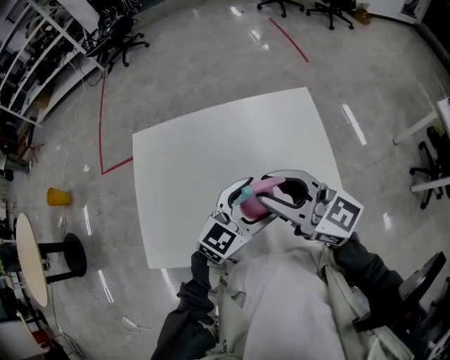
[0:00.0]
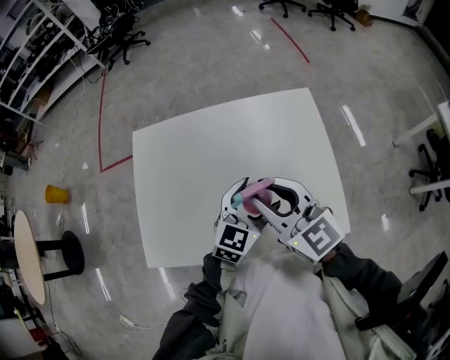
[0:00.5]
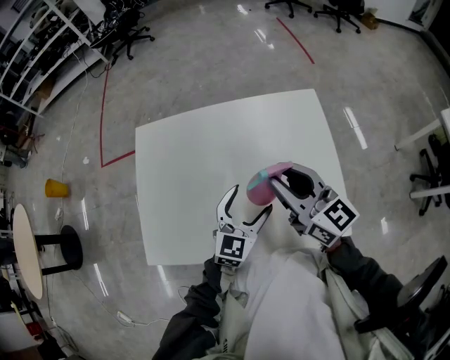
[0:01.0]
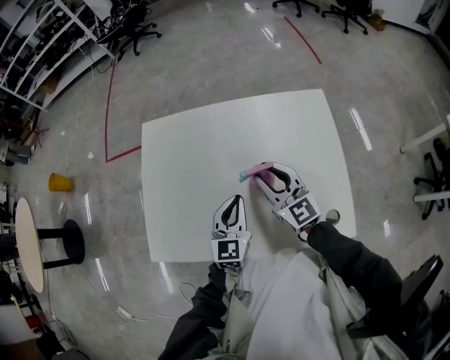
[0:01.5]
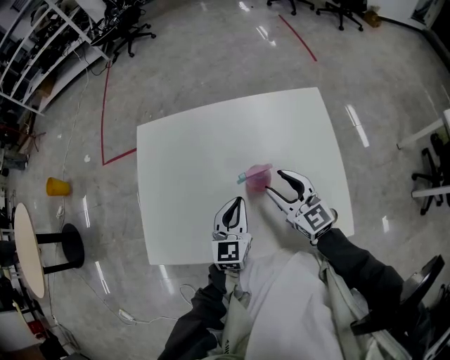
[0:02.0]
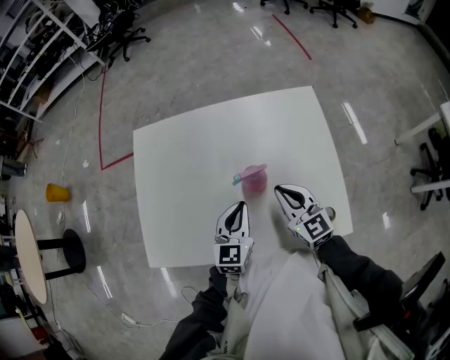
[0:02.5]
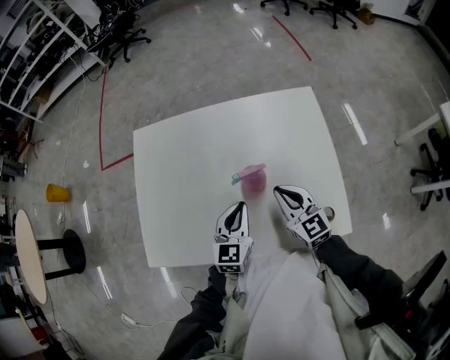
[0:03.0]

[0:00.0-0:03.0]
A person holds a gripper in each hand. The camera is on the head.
0:00.0 to 0:01.5: The left gripper shifts approximately 15 cm to the left and downward, turns by about 40 degrees, and closes up. Meanwhile the right gripper is displaced downward and forward by approximately 15 cm, and turns by about 20 degrees.
0:01.5 to 0:03.0: The right gripper heads backward, to the right and downward, covering about 10 cm.

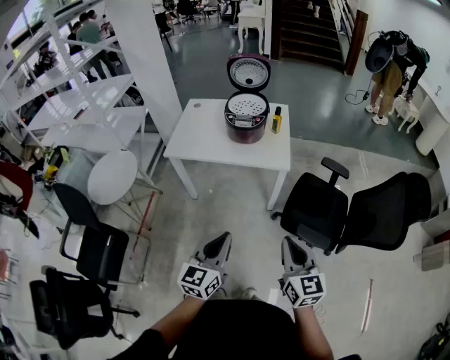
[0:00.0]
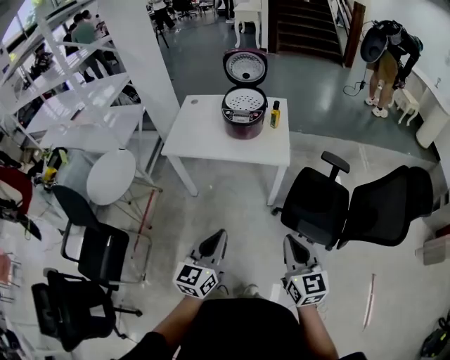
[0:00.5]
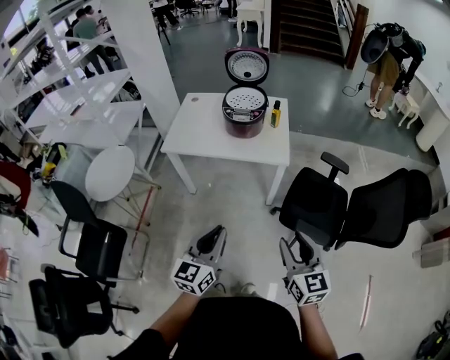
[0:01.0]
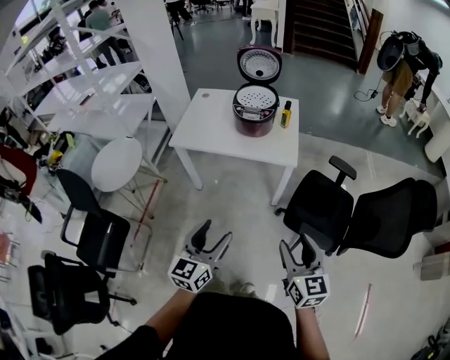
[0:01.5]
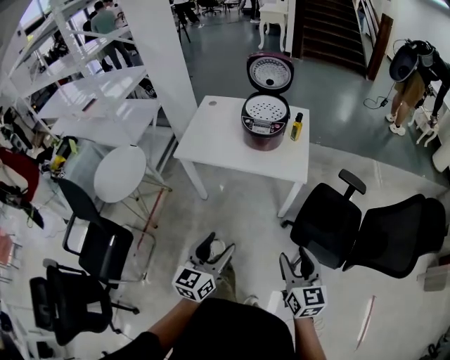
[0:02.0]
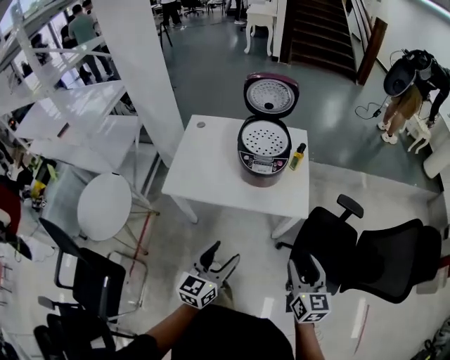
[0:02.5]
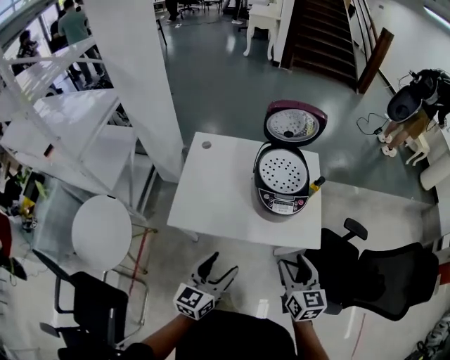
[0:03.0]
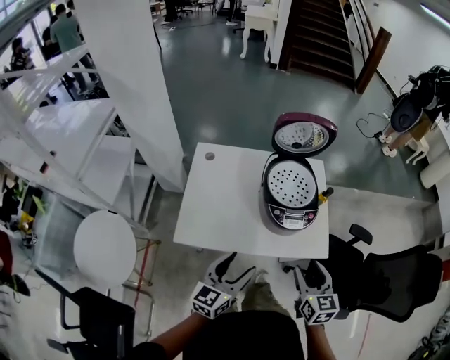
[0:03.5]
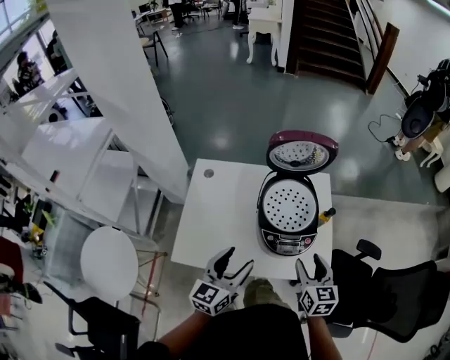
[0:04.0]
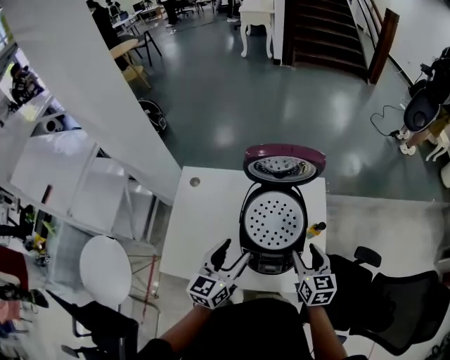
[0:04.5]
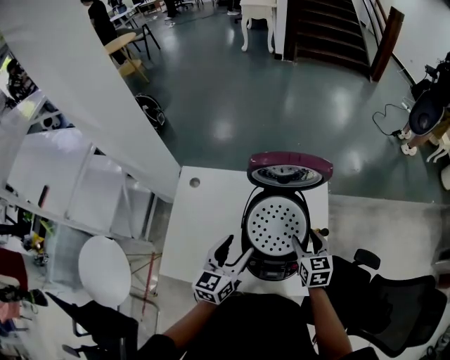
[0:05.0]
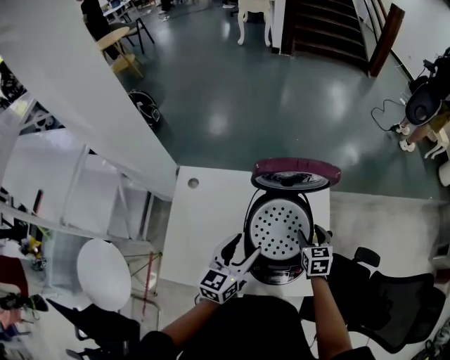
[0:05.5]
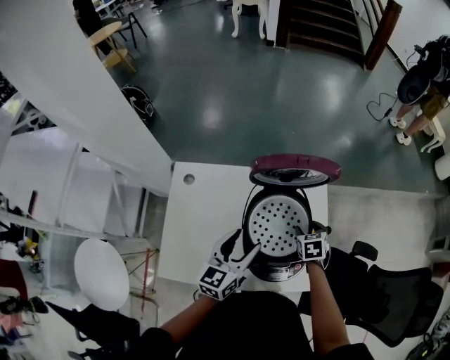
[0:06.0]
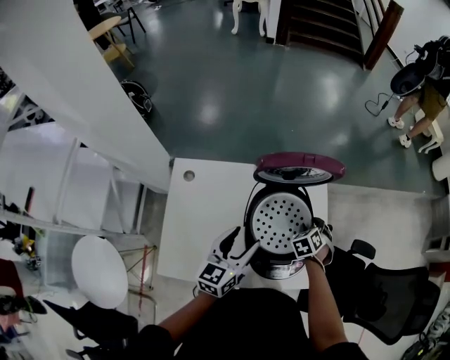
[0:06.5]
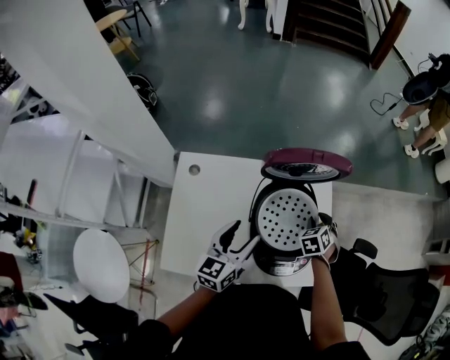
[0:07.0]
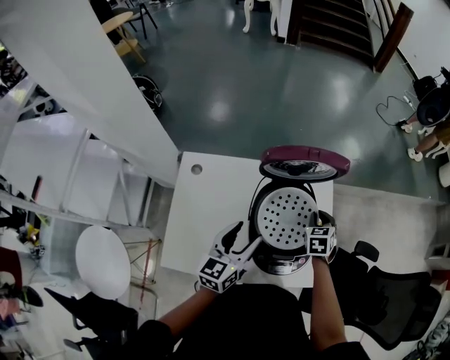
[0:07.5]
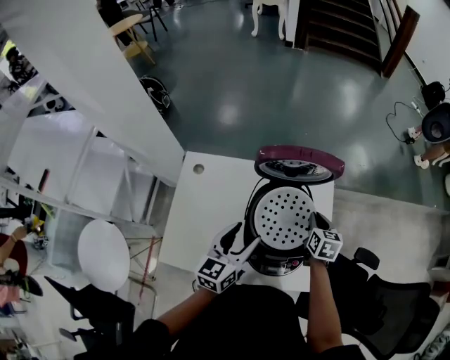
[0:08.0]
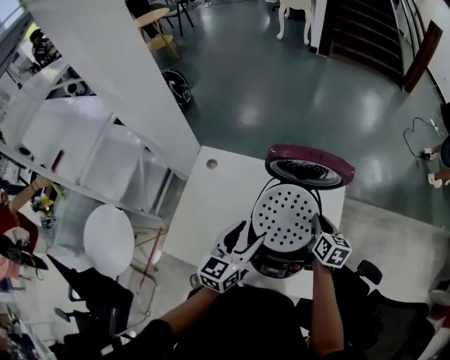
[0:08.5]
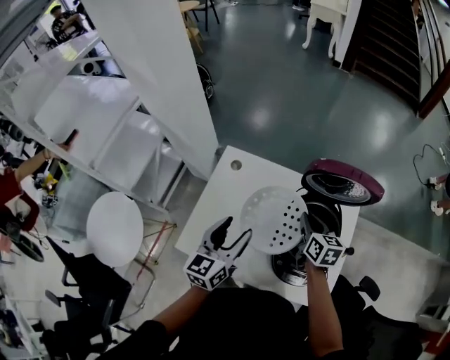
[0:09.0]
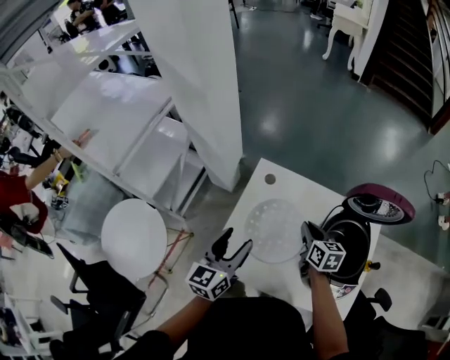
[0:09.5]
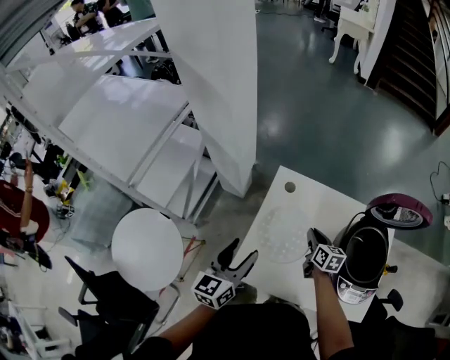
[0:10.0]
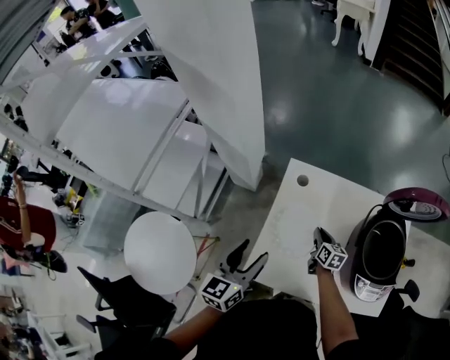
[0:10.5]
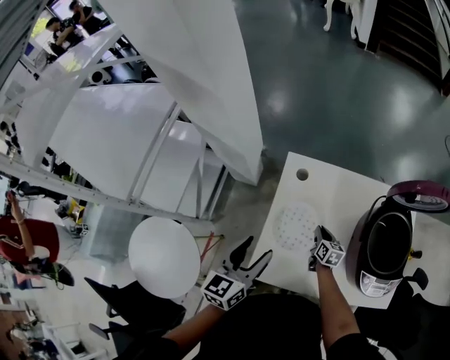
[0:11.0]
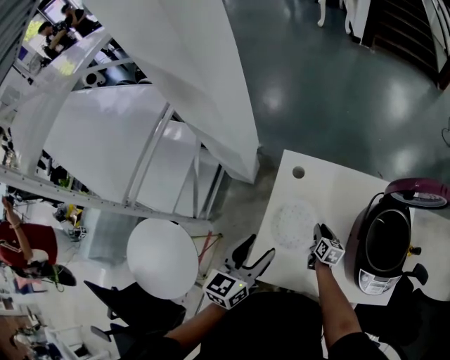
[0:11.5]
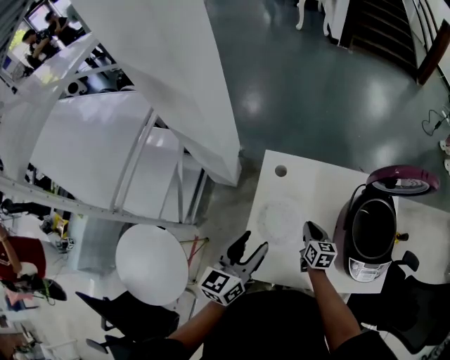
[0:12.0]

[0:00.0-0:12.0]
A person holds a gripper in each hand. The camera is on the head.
0:00.0 to 0:02.0: The right gripper moves forward and downward, some 10 cm, and opens its fingers. Meanwhile the left gripper is displaced forward by approximately 5 cm, and opens up.
0:02.0 to 0:04.0: The pair of grippers is taken forward, about 50 cm.
0:04.0 to 0:06.0: The left gripper heads forward, covering approximately 20 cm. Meanwhile the right gripper is displaced forward and downward by some 25 cm, and tilts its fingers roughly 30 degrees downward.
0:06.0 to 0:08.0: The right gripper moves upward, about 5 cm, changes its angle by approximately 30 degrees, and closes up.
0:08.0 to 0:10.0: The right gripper ends up roughly 40 cm from where it was, and swivels approximately 20 degrees. Meanwhile the left gripper moves roughly 40 cm.
0:10.0 to 0:12.0: The right gripper goes downward and returns, roughly 15 cm each way; the left gripper ends up some 5 cm from where it was.

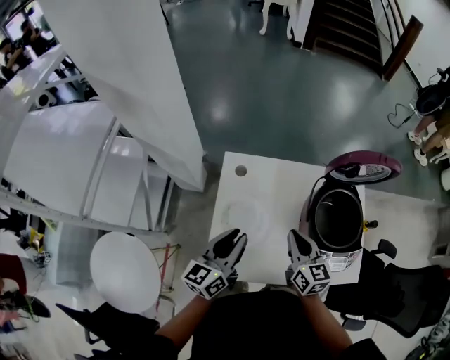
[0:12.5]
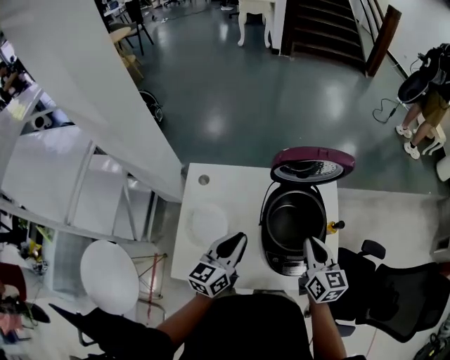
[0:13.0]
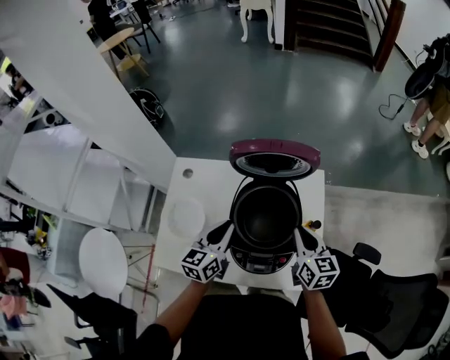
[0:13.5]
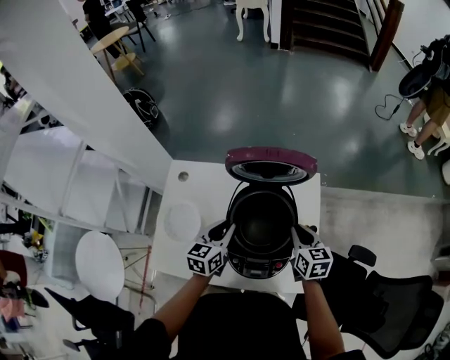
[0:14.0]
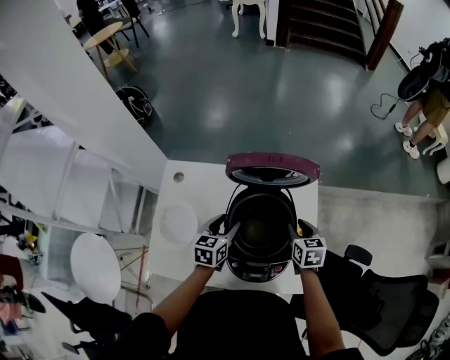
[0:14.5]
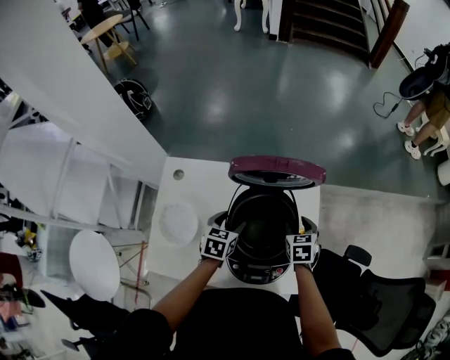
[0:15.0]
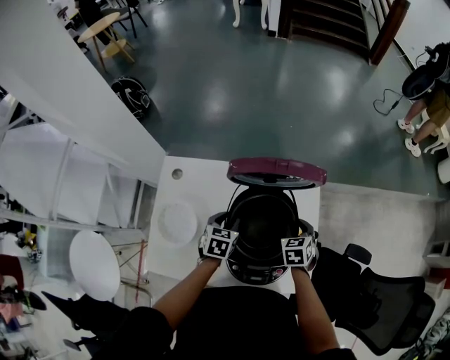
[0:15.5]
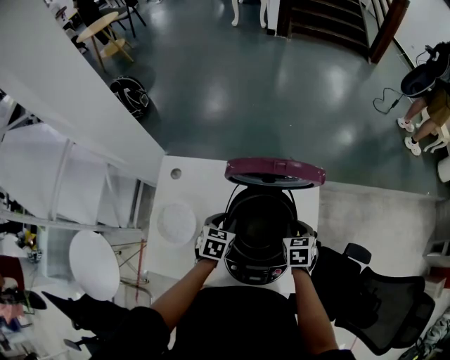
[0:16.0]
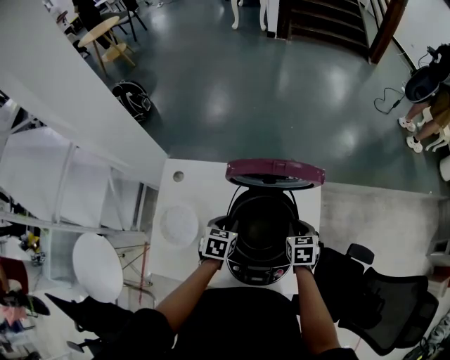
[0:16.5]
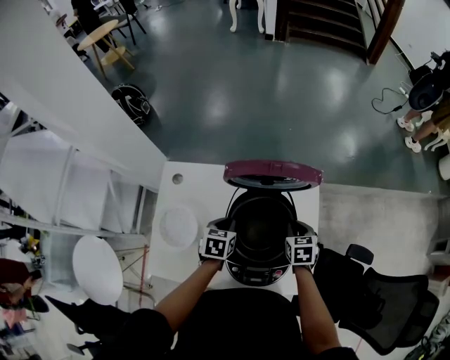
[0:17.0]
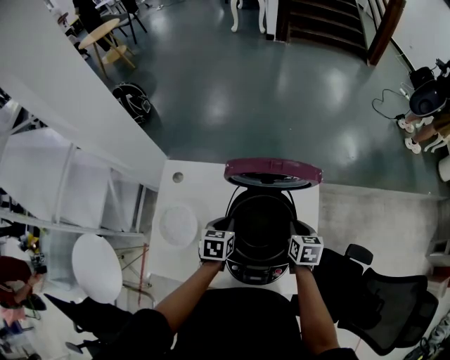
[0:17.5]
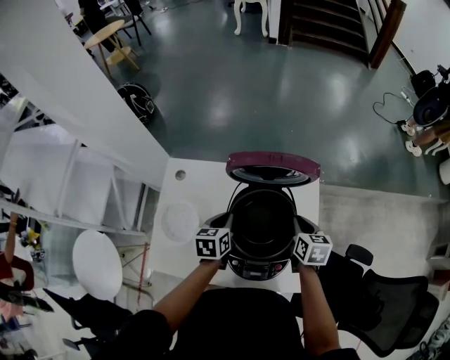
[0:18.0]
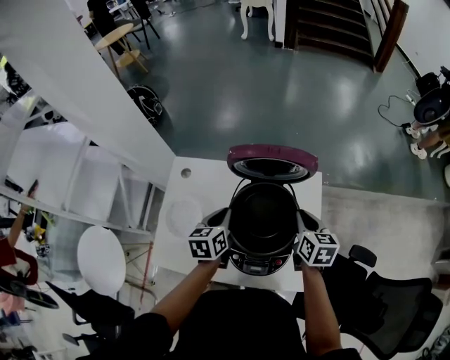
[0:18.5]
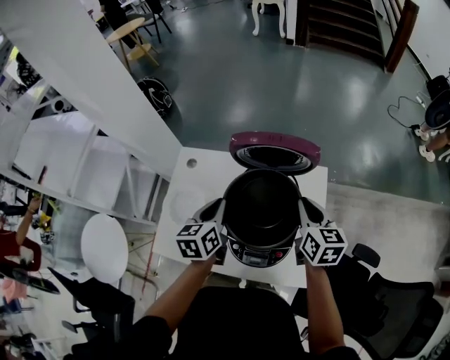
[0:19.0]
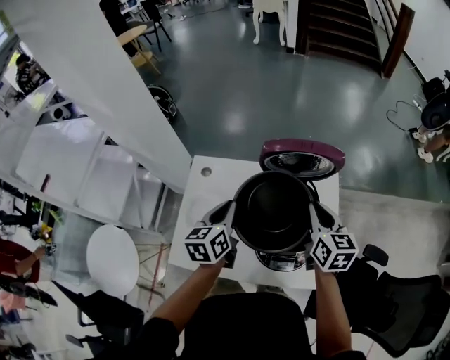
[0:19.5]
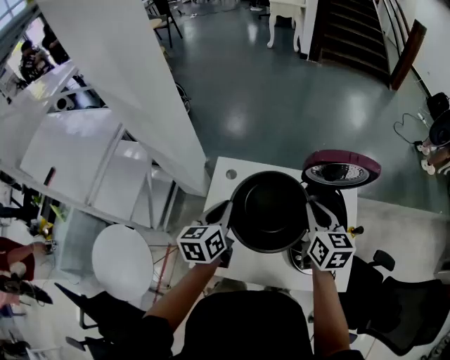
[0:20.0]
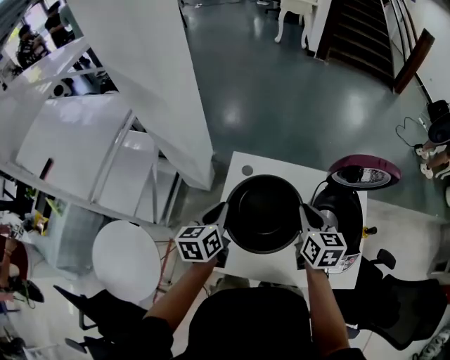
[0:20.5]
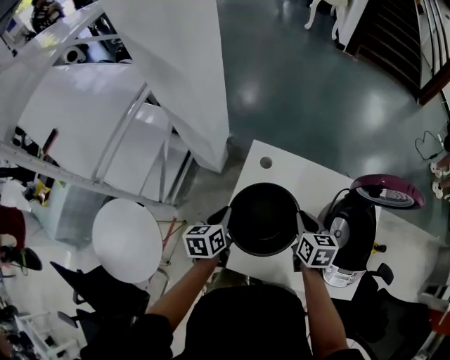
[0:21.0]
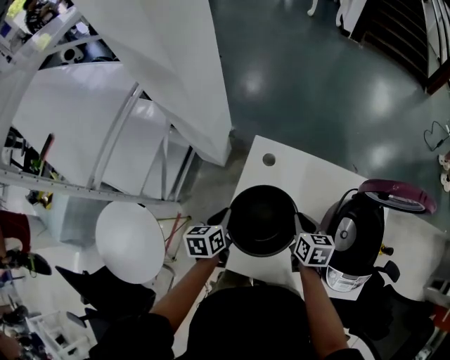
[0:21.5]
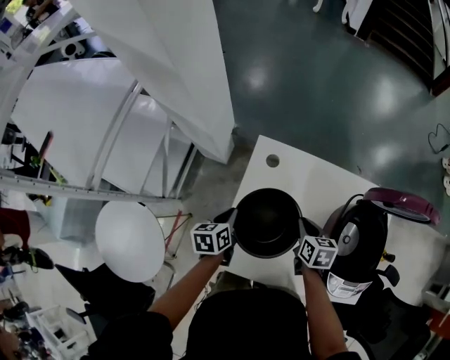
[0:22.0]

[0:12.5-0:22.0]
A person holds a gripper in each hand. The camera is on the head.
0:12.5 to 0:14.5: The left gripper travels to the right and forward by roughly 30 cm, changes its angle by about 30 degrees, and opens up. The right gripper shifts some 35 cm to the right, turns by some 20 degrees, and opens.
0:14.5 to 0:16.5: The left gripper closes up.
0:16.5 to 0:18.0: The grippers both shift upward by approximately 5 cm.
0:18.0 to 0:20.0: Both grippers travel together to the left and upward, approximately 25 cm. The left gripper changes its angle by approximately 20 degrees.
0:20.0 to 0:22.0: The grippers both shift downward and to the left by approximately 30 cm. The right gripper rotates roughly 30 degrees. The left gripper changes its angle by some 20 degrees.

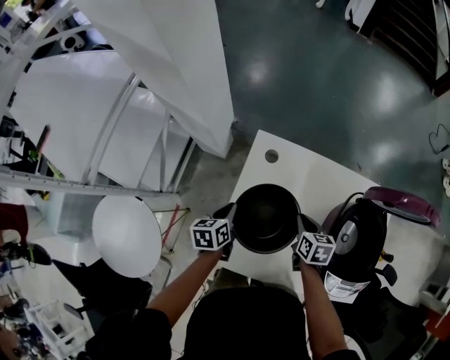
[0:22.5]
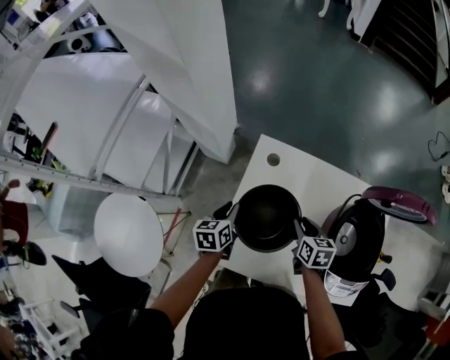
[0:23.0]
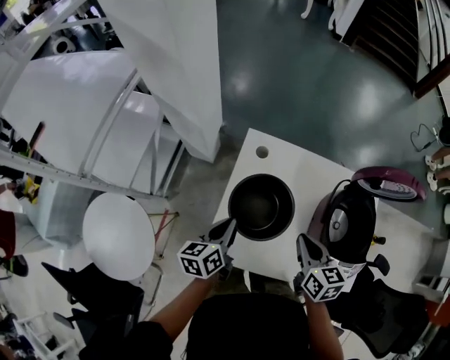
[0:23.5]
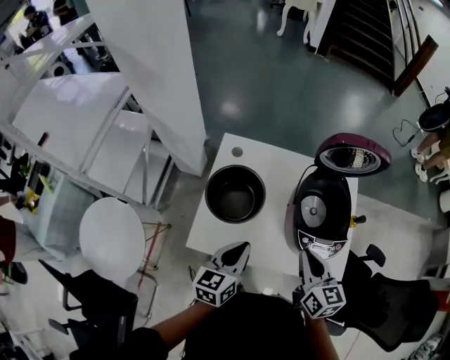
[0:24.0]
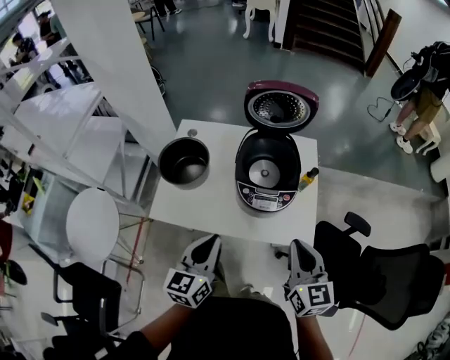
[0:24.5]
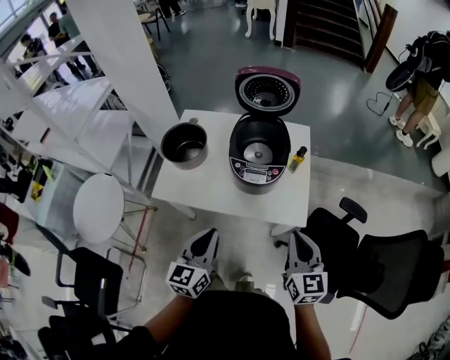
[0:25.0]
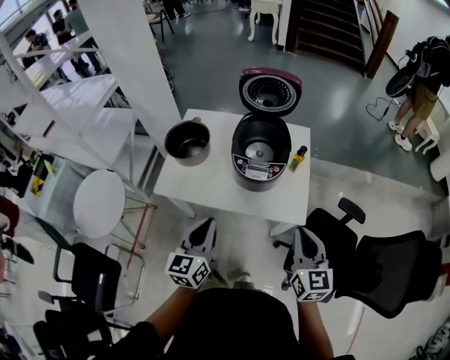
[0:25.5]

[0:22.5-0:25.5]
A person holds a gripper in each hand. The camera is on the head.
0:22.5 to 0:24.0: The right gripper moves upward, backward and to the right, some 30 cm, turns by some 30 degrees, and opens, then closes once more; the left gripper is displaced backward, upward and to the right by about 30 cm, and changes its angle by some 30 degrees.
0:24.0 to 0:25.5: The right gripper travels to the right and backward by roughly 35 cm. Meanwhile the left gripper travels backward and to the right by about 25 cm.
